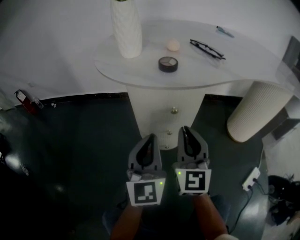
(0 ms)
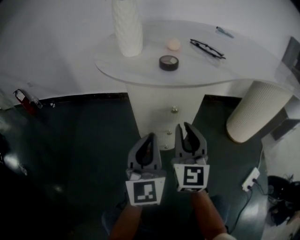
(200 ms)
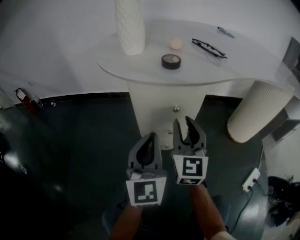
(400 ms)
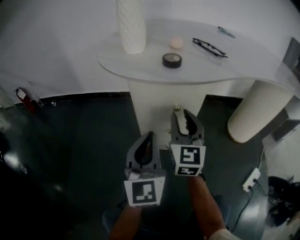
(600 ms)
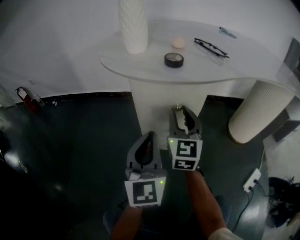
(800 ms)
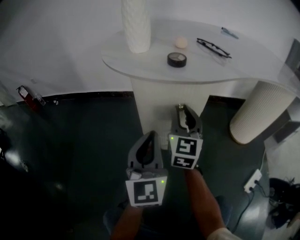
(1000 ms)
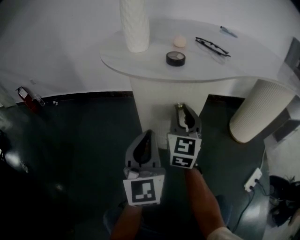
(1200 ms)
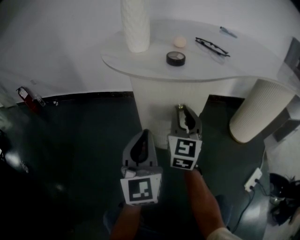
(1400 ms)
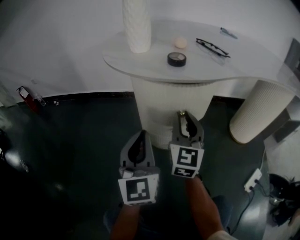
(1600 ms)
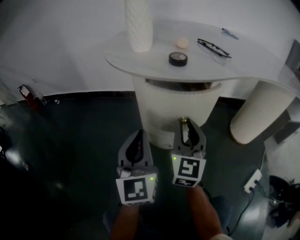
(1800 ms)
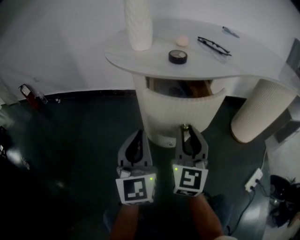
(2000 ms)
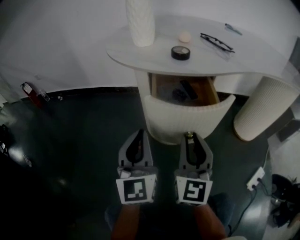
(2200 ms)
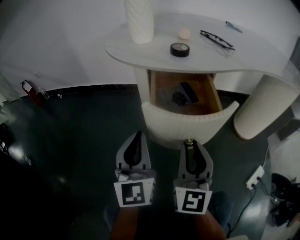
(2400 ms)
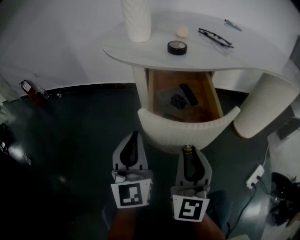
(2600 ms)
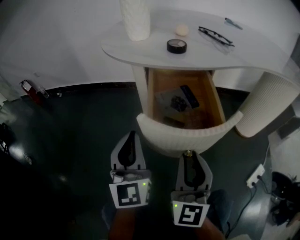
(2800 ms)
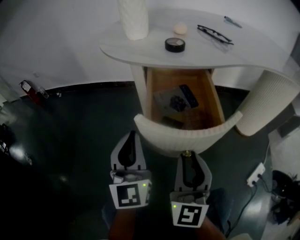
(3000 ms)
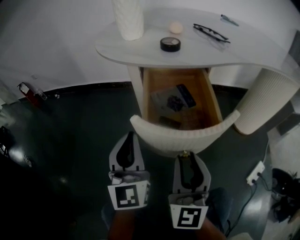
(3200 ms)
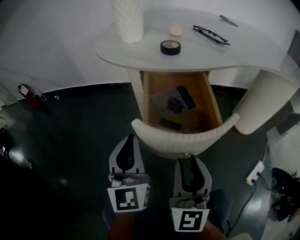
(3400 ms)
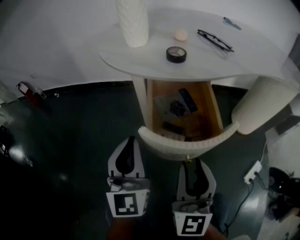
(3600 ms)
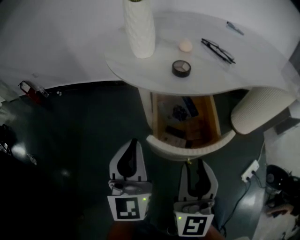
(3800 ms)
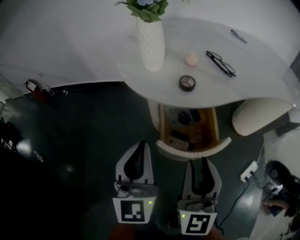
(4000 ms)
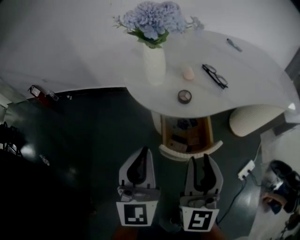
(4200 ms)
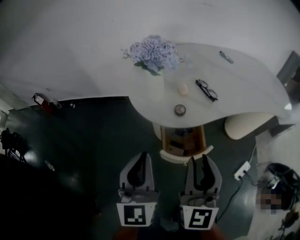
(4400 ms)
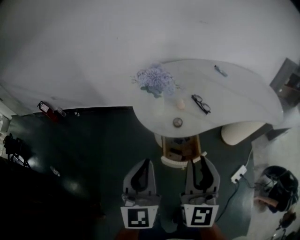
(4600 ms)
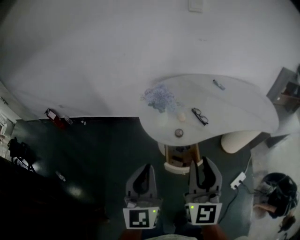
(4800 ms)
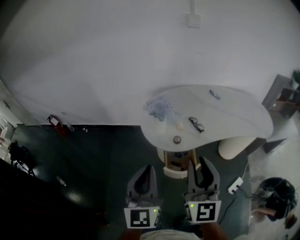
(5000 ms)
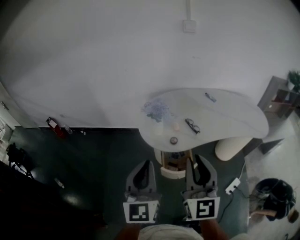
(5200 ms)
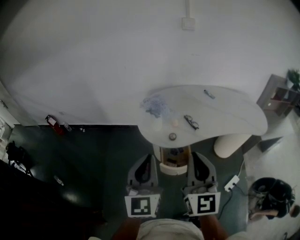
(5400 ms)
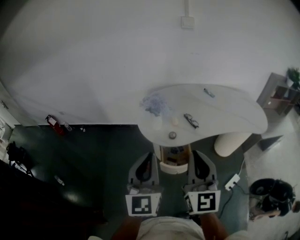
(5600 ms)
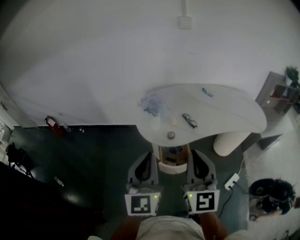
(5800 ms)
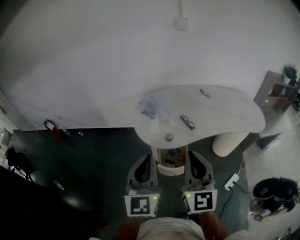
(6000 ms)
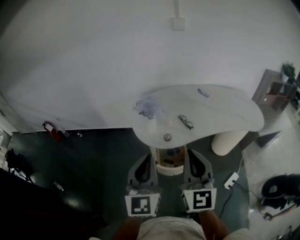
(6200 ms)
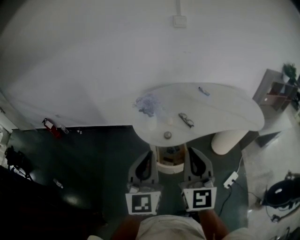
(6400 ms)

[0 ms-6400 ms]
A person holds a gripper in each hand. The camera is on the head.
0 ms to 1600 ms: The right gripper opens up.
1600 ms to 3200 ms: The right gripper heads backward, covering about 15 cm.
3200 ms to 4800 ms: The two grippers go some 50 cm upward.
4800 ms to 6400 ms: The two grippers go about 5 cm upward. The right gripper closes its fingers.

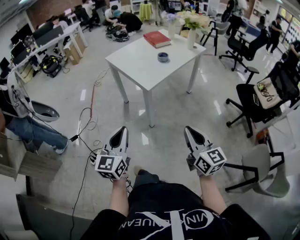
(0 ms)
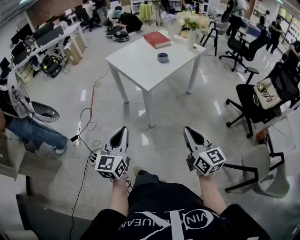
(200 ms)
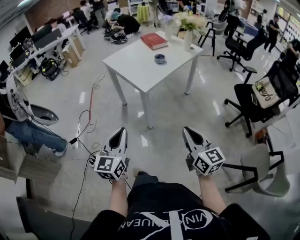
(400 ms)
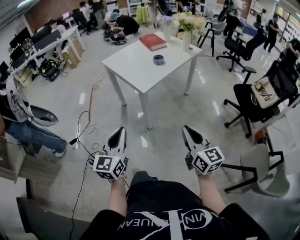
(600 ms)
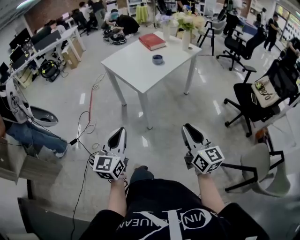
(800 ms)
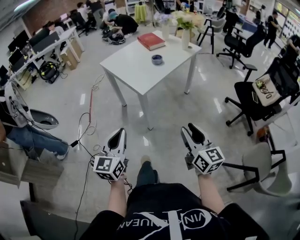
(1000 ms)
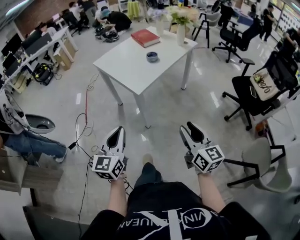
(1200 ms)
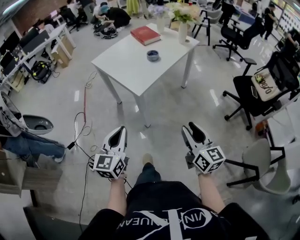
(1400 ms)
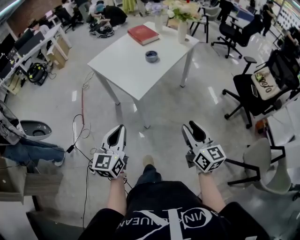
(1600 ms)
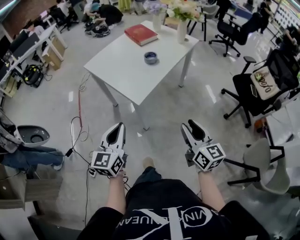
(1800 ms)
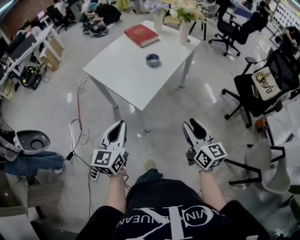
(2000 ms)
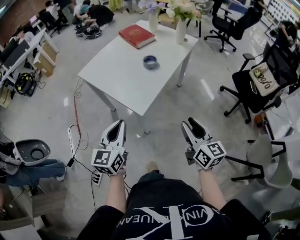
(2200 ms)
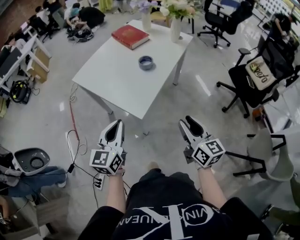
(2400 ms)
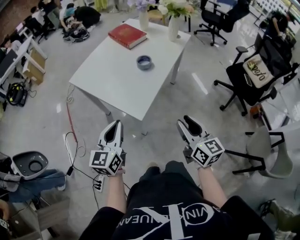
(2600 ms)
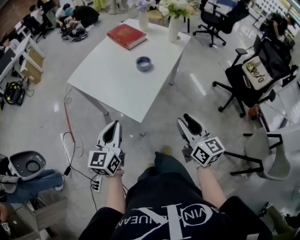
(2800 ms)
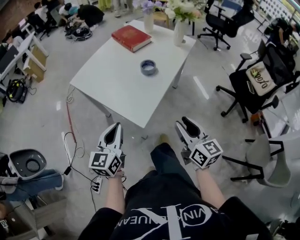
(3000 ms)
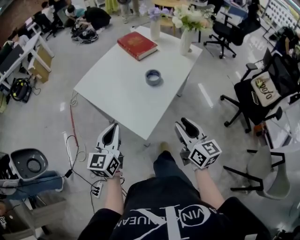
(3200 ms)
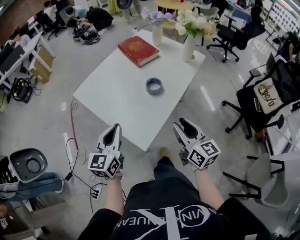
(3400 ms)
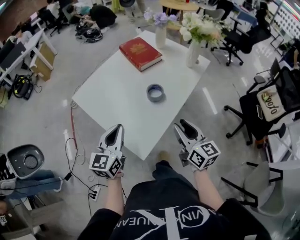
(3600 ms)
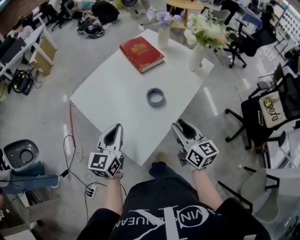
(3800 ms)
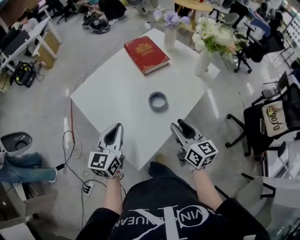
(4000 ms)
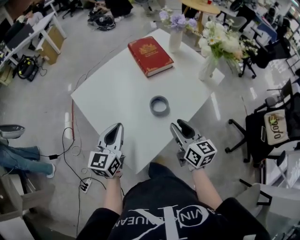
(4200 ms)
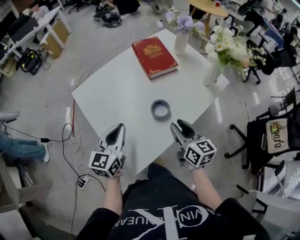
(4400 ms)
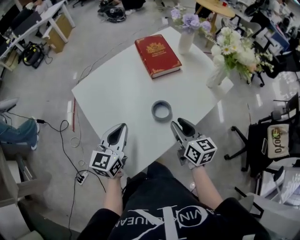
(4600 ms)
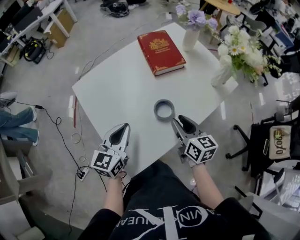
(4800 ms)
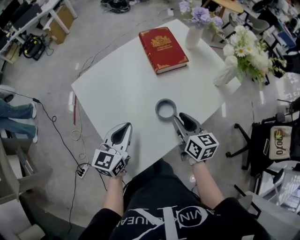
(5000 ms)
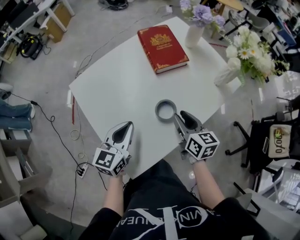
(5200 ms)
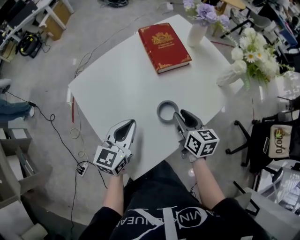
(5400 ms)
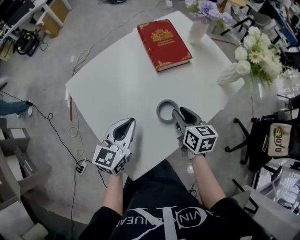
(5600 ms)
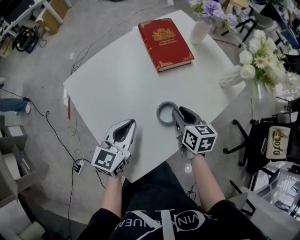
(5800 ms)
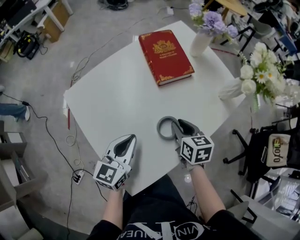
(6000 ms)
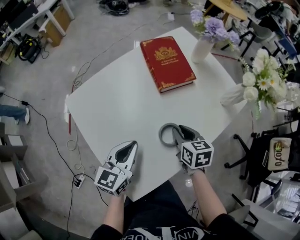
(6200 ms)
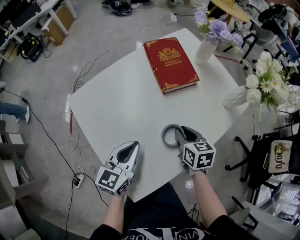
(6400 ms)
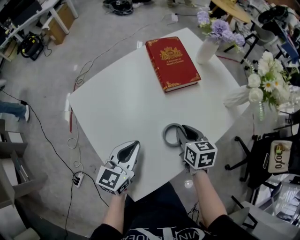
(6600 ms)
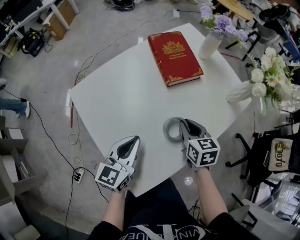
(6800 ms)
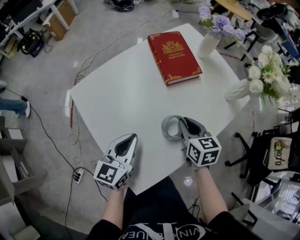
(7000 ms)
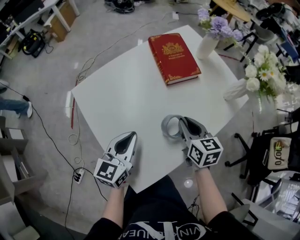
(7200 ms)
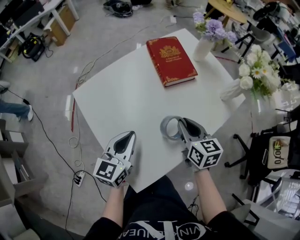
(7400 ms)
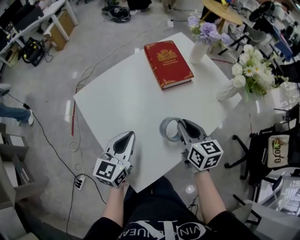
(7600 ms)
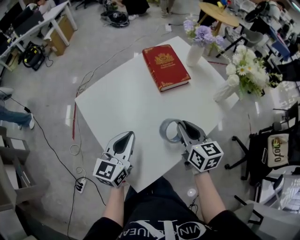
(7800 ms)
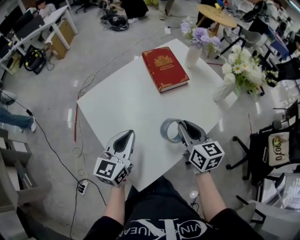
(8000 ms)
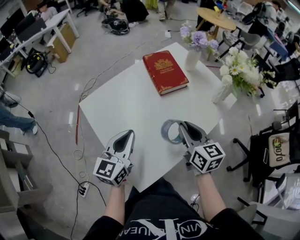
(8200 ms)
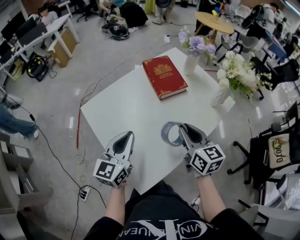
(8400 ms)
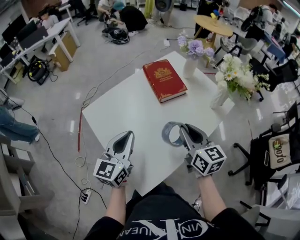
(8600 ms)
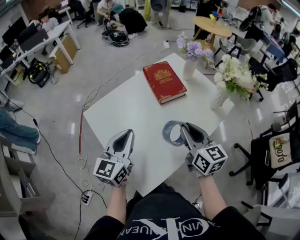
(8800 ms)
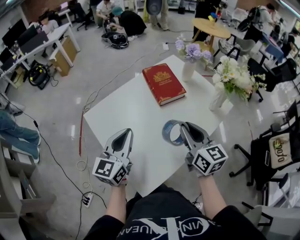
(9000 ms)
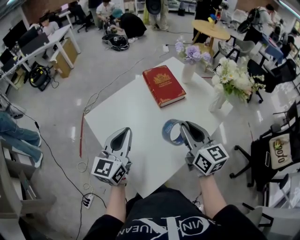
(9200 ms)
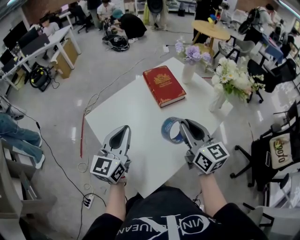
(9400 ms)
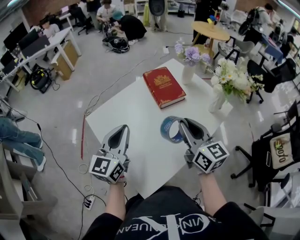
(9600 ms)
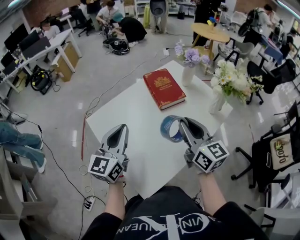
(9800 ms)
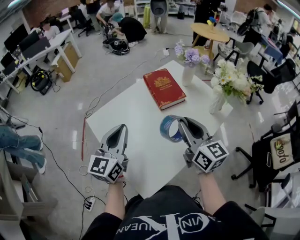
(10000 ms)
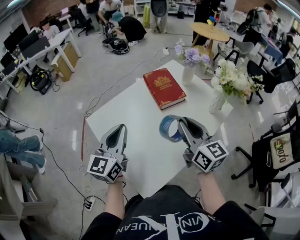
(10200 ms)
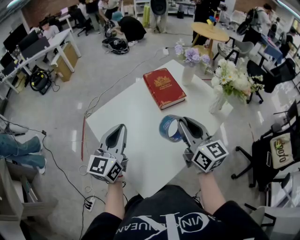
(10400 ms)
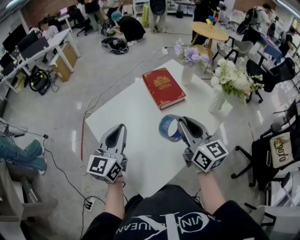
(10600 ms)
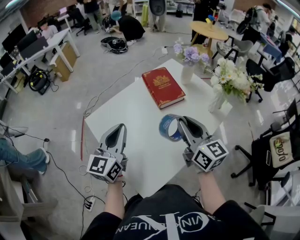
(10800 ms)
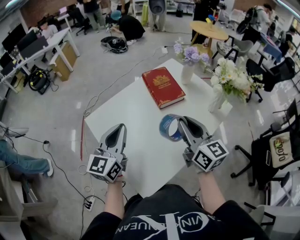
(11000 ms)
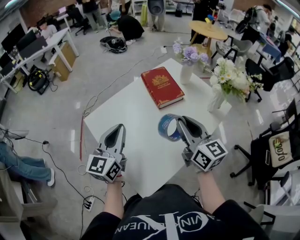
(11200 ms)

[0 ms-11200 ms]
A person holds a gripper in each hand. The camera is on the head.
0 ms to 1600 ms: Both grippers travel together forward, about 10 cm. The right gripper opens its fingers.
1600 ms to 3200 ms: Both grippers travel together forward, some 25 cm.
3200 ms to 4800 ms: The right gripper travels forward by approximately 30 cm, and changes its angle by some 20 degrees. Meanwhile the left gripper travels forward and to the right by roughly 20 cm.
4800 ms to 6400 ms: The left gripper shifts by approximately 5 cm. Meanwhile the right gripper shifts roughly 10 cm forward and downward, and swivels some 20 degrees.
6400 ms to 8000 ms: The left gripper travels upward by approximately 10 cm; the right gripper heads upward, covering roughly 15 cm, and swivels some 20 degrees.
8000 ms to 9600 ms: Both grippers move upward, about 10 cm.
9600 ms to 11200 ms: The grippers make only small movements.

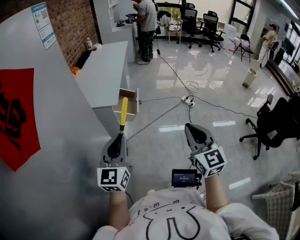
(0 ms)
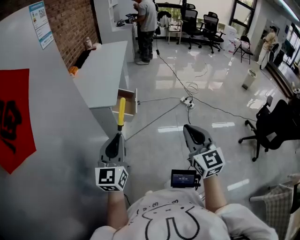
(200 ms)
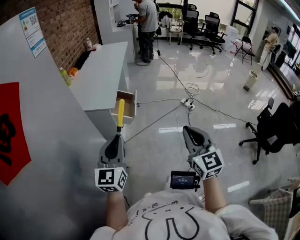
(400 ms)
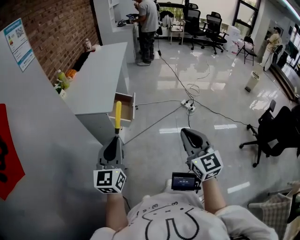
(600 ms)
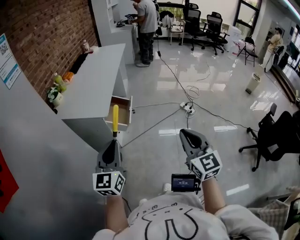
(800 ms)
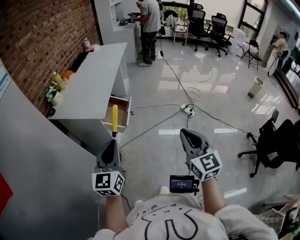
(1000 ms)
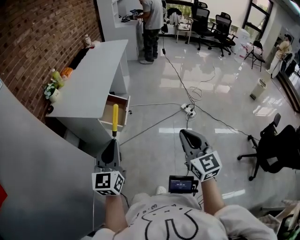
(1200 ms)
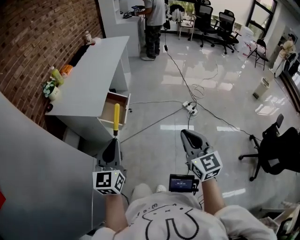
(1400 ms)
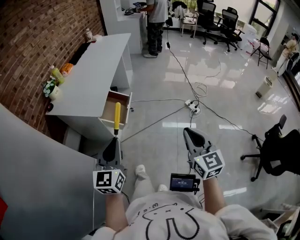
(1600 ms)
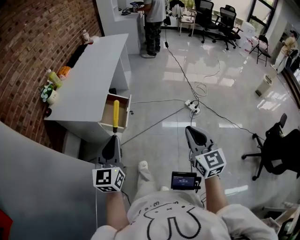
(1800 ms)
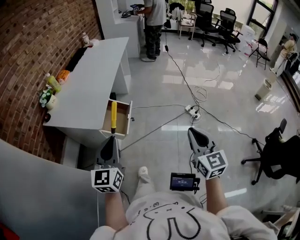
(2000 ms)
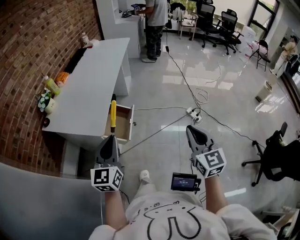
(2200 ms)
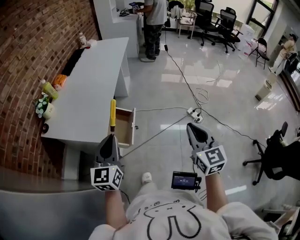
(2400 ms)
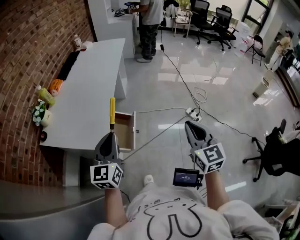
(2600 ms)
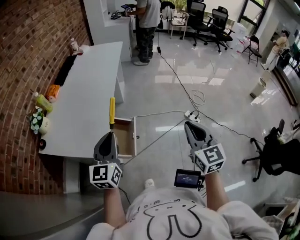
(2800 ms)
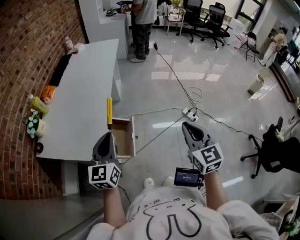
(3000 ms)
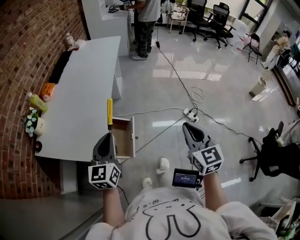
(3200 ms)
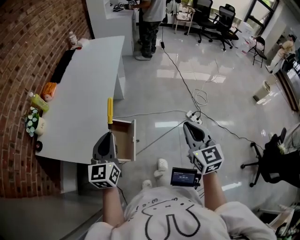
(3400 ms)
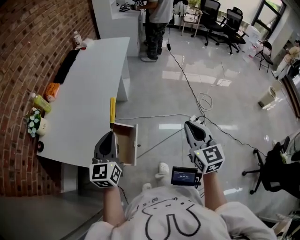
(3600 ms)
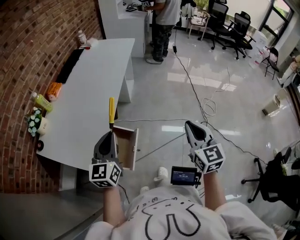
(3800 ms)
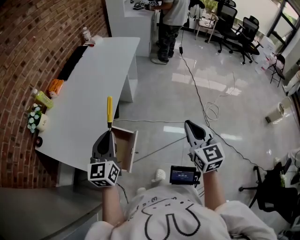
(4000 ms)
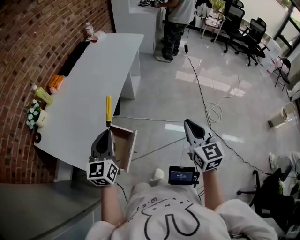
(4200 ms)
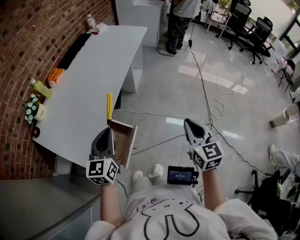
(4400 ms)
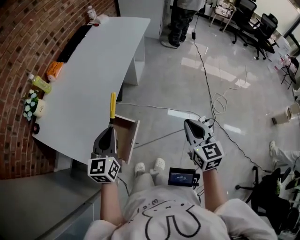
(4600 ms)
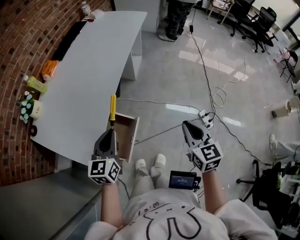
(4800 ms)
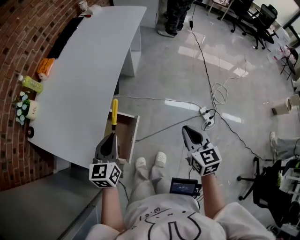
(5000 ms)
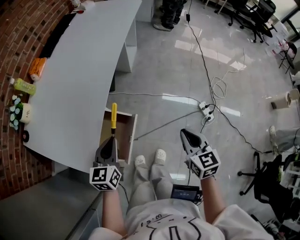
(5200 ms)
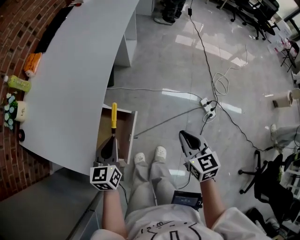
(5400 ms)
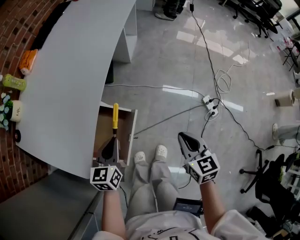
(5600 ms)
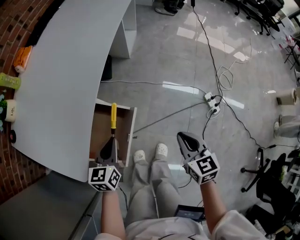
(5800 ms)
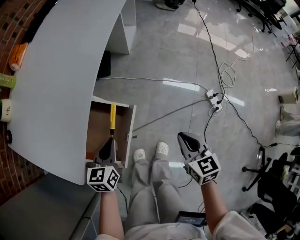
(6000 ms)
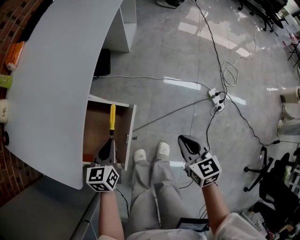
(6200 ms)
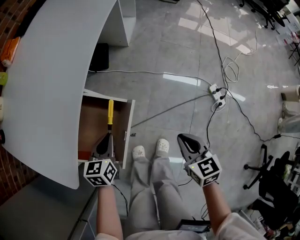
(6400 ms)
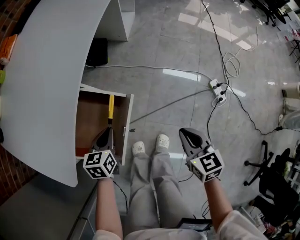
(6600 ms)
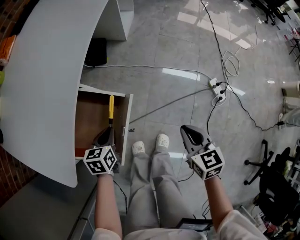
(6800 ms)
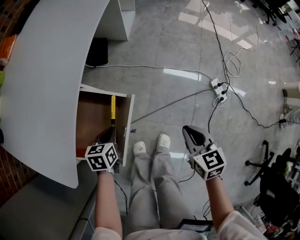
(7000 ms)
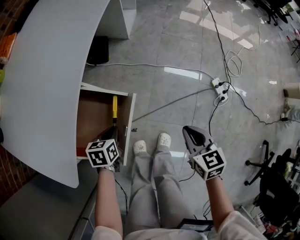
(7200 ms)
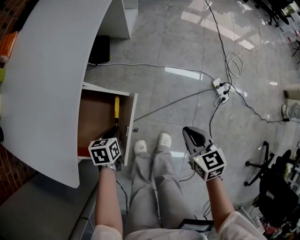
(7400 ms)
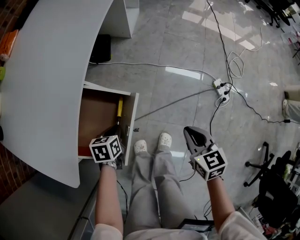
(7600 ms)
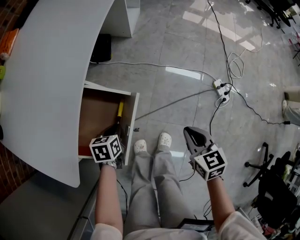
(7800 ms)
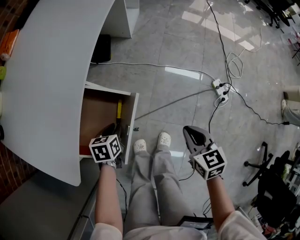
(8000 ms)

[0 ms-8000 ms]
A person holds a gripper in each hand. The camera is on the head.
0 ms to 1600 ms: Both grippers move forward and to the right, some 25 cm.
1600 ms to 3200 ms: Both grippers move forward, roughly 35 cm.
3200 ms to 4800 ms: Both grippers move forward and downward, roughly 20 cm. The right gripper swivels some 20 degrees.
4800 ms to 6400 ms: Both grippers travel together downward, some 30 cm. The left gripper changes its angle by approximately 20 degrees.
6400 ms to 8000 ms: The left gripper travels downward by approximately 10 cm, rotates approximately 20 degrees, and opens up.
